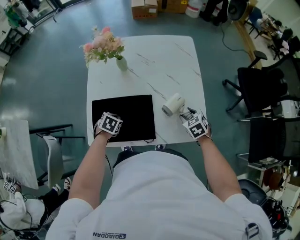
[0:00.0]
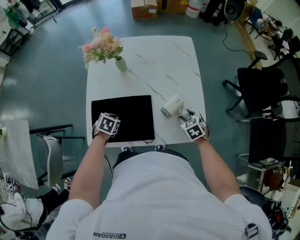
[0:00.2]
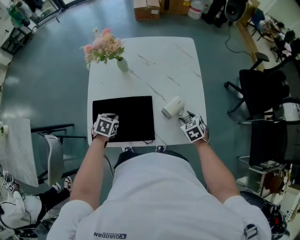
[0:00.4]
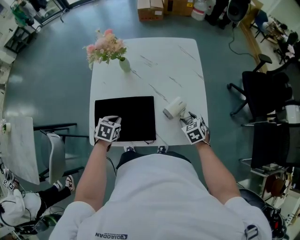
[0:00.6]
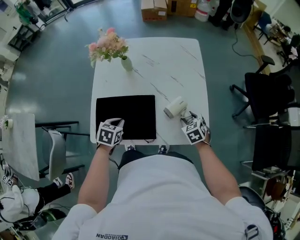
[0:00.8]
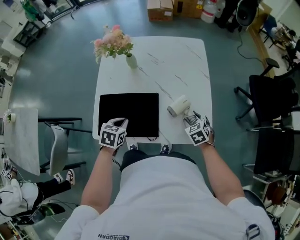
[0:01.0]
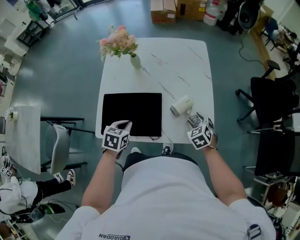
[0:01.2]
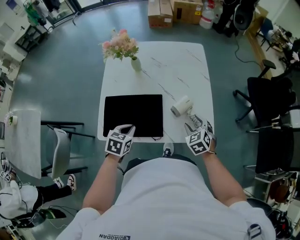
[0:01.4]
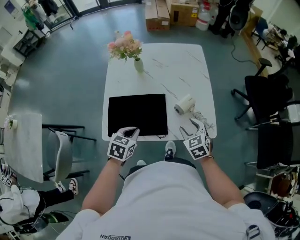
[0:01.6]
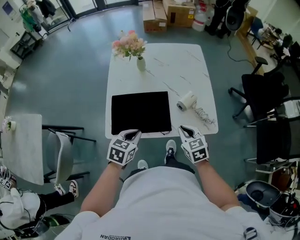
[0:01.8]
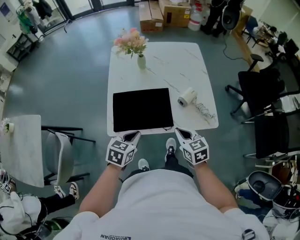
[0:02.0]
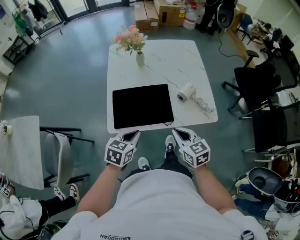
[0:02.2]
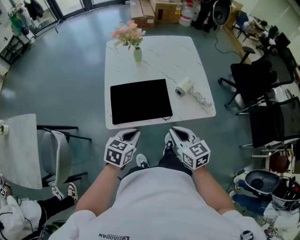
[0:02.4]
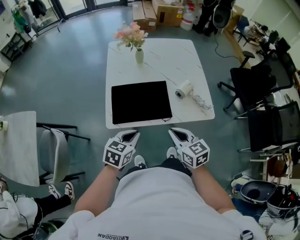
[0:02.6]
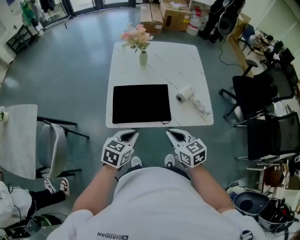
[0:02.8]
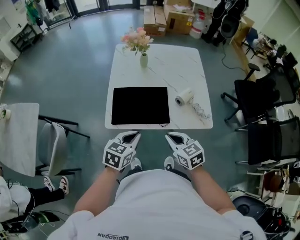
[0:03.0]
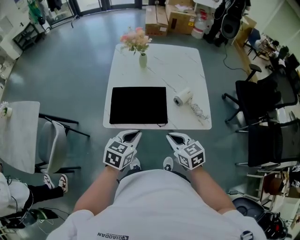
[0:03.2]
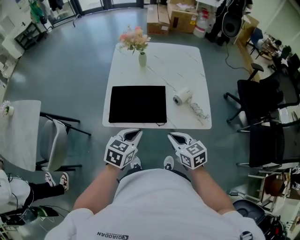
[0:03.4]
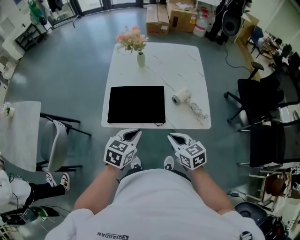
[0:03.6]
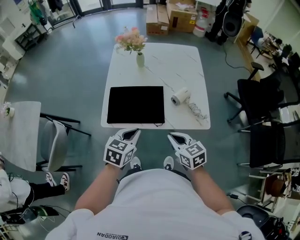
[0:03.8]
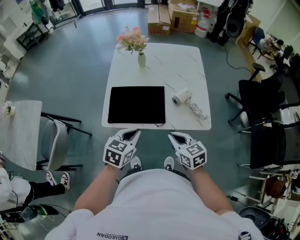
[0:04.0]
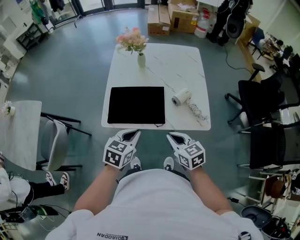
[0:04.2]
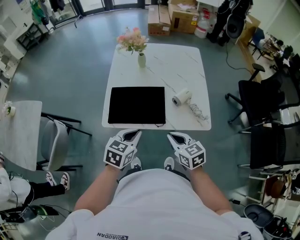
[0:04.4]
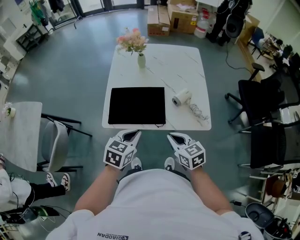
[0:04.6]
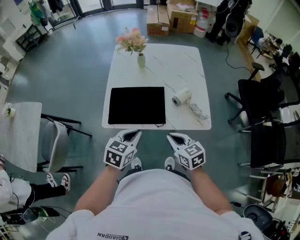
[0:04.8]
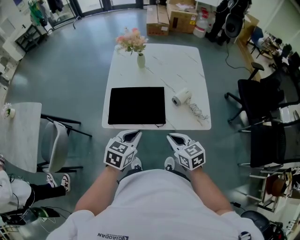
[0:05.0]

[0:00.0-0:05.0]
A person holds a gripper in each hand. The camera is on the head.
0:00.0 to 0:01.6: The right gripper is displaced backward, upward and to the left by about 15 cm, while the left gripper goes roughly 15 cm upward, backward and to the right, and rotates approximately 20 degrees.
0:01.6 to 0:03.4: The left gripper heads backward and upward, covering approximately 10 cm. The right gripper travels backward, to the left and upward by some 15 cm, swivels some 30 degrees, and closes its fingers.
0:03.4 to 0:05.0: There are only small adjustments of the grippers.

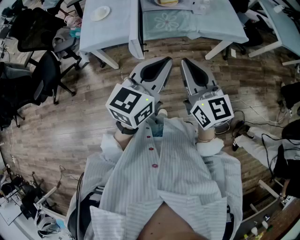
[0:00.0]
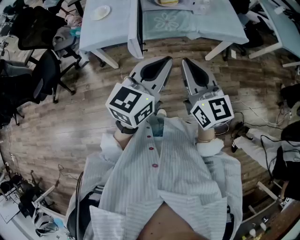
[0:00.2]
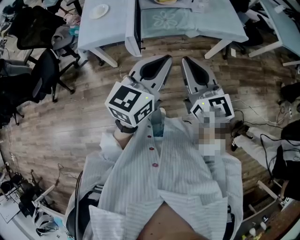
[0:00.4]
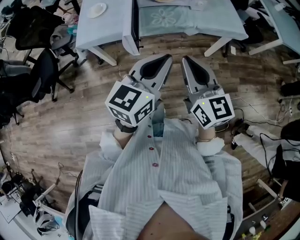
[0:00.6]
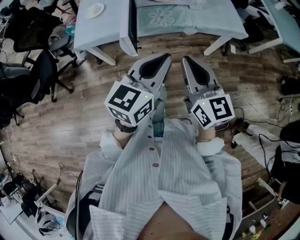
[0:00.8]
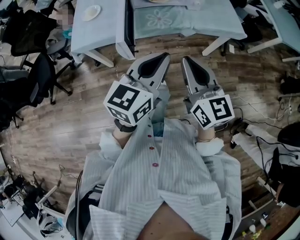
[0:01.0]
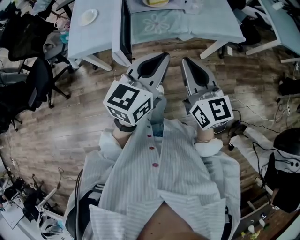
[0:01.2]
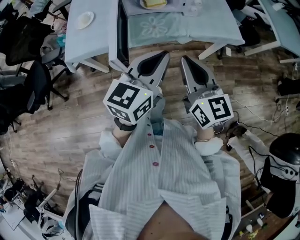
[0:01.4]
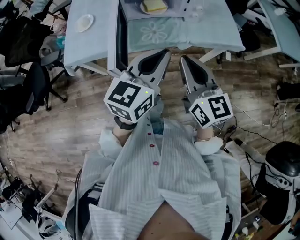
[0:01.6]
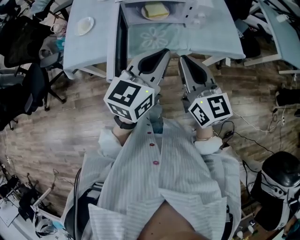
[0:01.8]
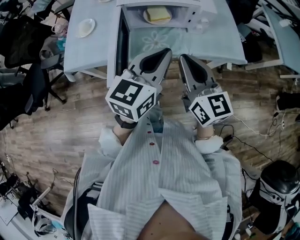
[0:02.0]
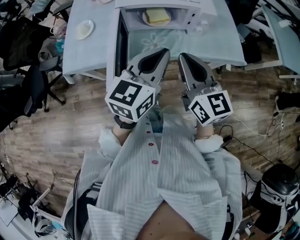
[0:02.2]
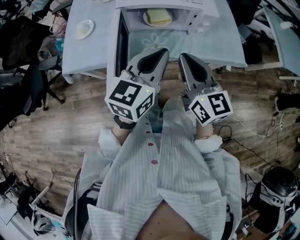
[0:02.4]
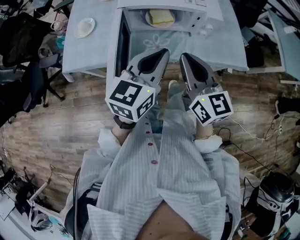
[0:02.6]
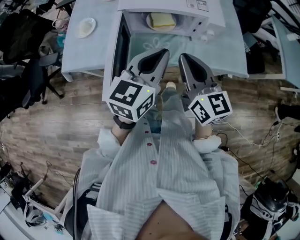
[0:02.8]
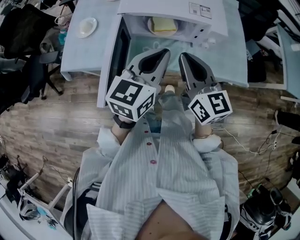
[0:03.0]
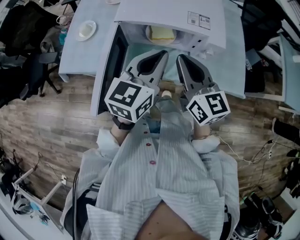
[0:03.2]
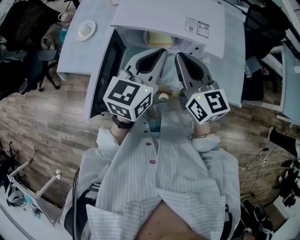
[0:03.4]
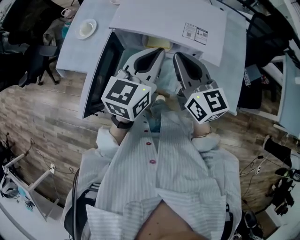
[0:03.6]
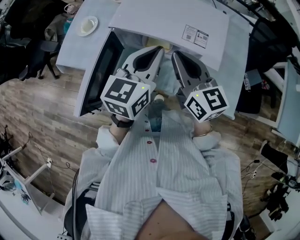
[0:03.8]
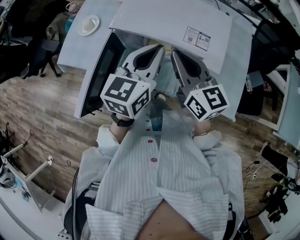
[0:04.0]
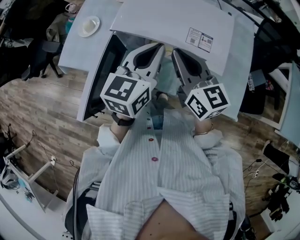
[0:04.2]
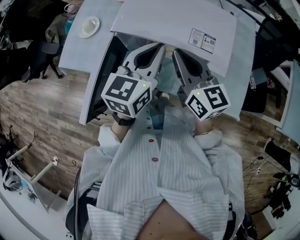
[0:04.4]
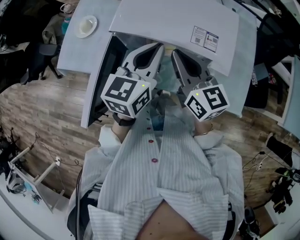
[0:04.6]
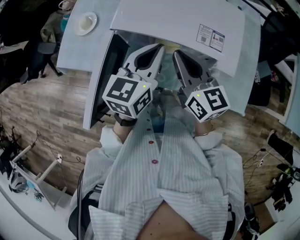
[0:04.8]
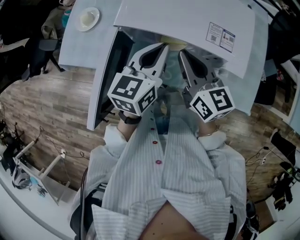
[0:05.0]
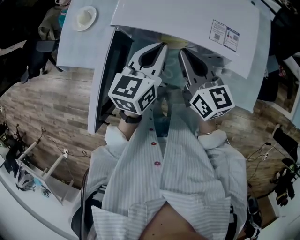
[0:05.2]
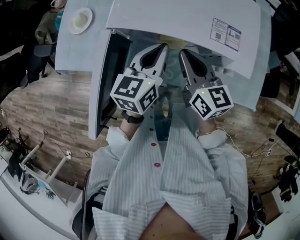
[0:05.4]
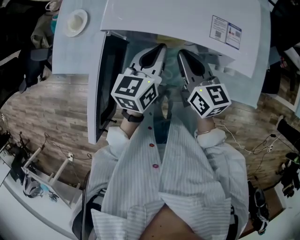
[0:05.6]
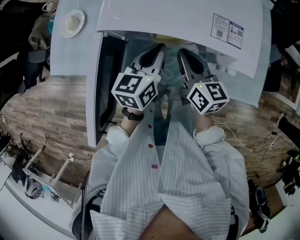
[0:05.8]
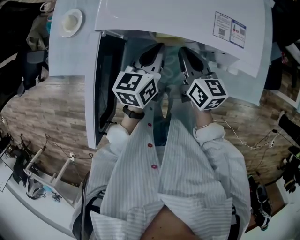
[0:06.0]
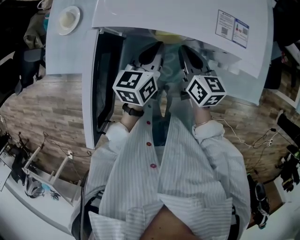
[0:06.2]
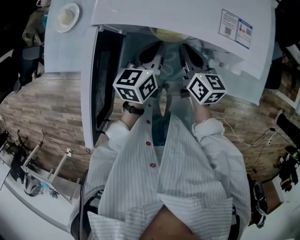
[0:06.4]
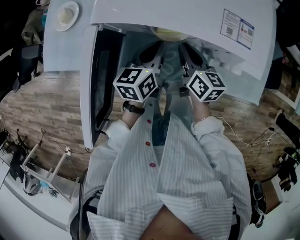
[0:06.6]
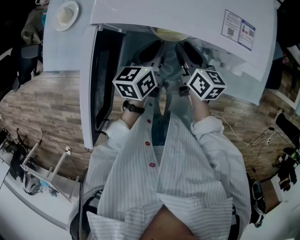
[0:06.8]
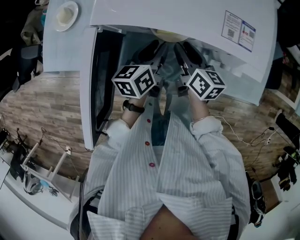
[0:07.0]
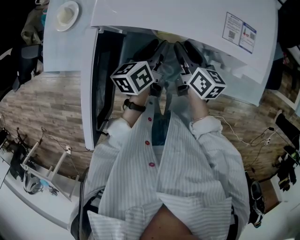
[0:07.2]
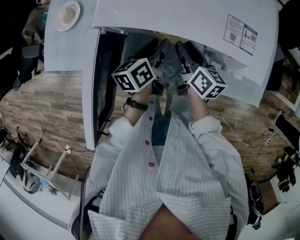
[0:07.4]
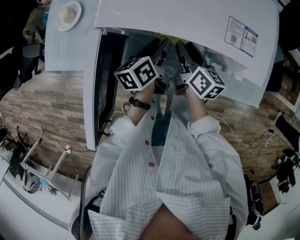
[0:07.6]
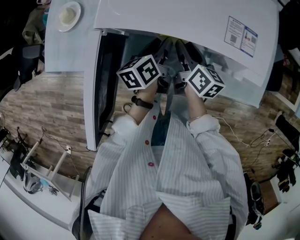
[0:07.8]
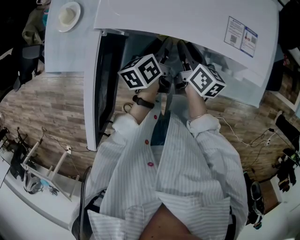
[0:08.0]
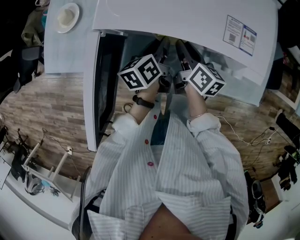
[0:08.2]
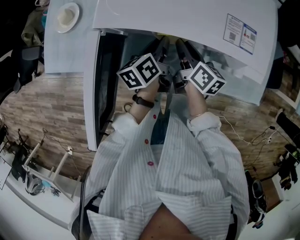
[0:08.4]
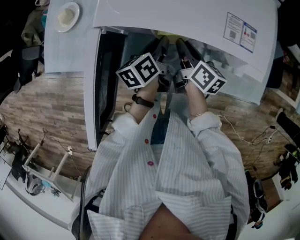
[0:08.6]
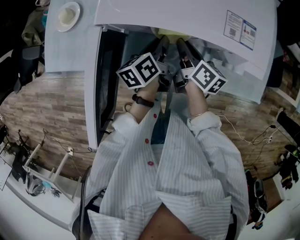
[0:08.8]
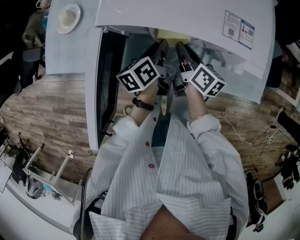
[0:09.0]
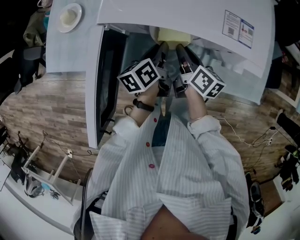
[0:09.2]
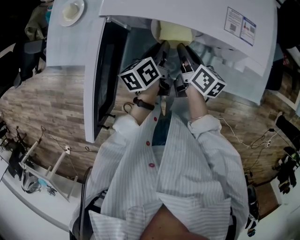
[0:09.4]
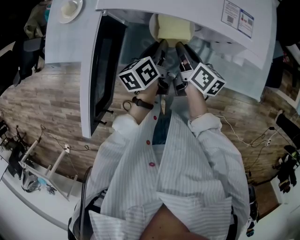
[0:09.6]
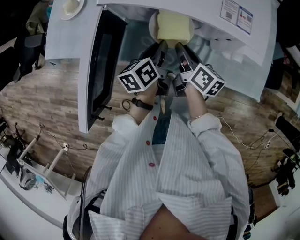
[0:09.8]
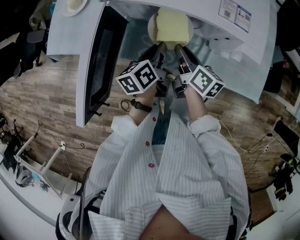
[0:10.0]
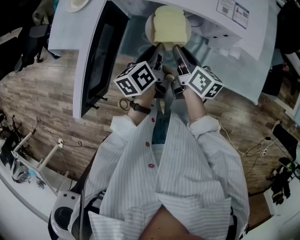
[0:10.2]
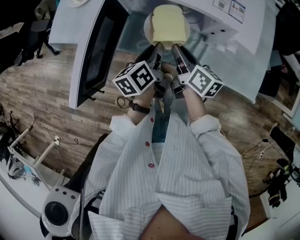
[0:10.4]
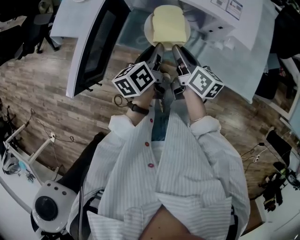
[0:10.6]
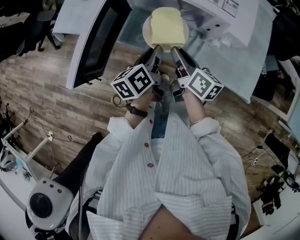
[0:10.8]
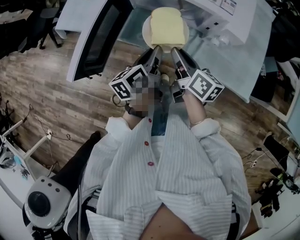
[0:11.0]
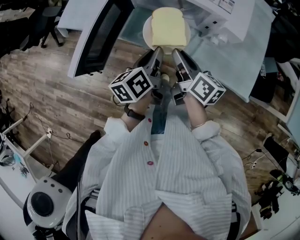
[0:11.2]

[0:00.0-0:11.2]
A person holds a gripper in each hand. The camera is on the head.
0:00.0 to 0:01.6: The grippers both shift forward by some 15 cm.
0:01.6 to 0:03.2: Both grippers move forward, about 20 cm.
0:03.2 to 0:04.8: The grippers both shift forward by approximately 10 cm.
0:04.8 to 0:06.4: The two grippers go some 20 cm downward. The right gripper changes its angle by about 20 degrees.
0:06.4 to 0:08.0: The right gripper opens; the left gripper ends up roughly 5 cm from where it was, swivels approximately 20 degrees, and opens.
0:08.0 to 0:09.6: The two grippers go some 5 cm backward. The left gripper closes up.
0:09.6 to 0:11.2: Both grippers move backward and upward, about 15 cm.

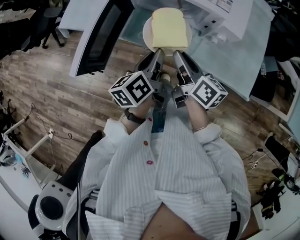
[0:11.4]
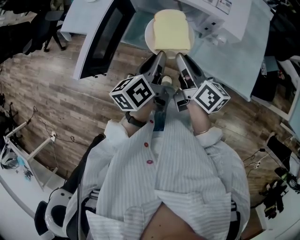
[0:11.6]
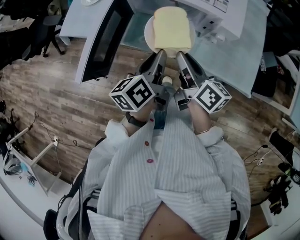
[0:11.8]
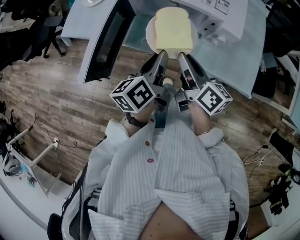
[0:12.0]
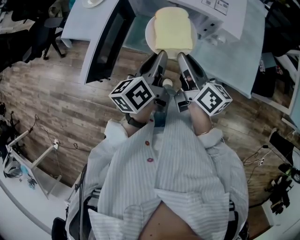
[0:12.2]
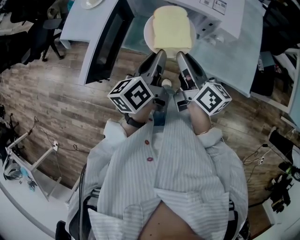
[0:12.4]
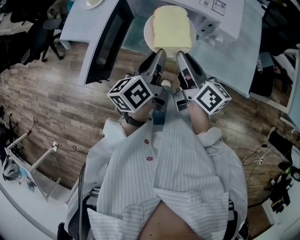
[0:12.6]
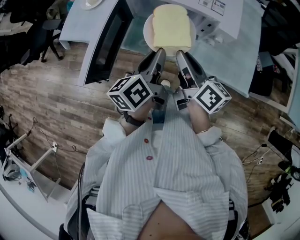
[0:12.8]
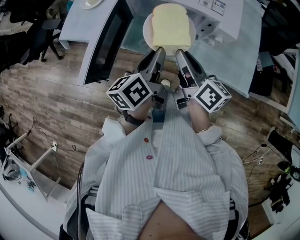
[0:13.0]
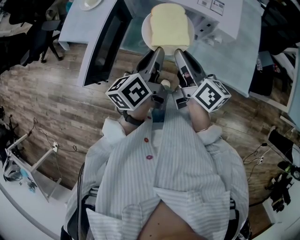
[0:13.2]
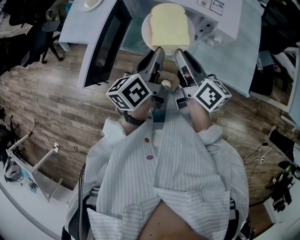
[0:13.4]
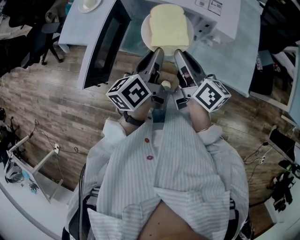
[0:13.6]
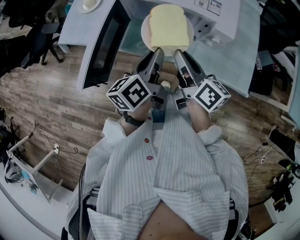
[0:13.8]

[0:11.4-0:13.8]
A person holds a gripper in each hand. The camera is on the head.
0:11.4 to 0:12.6: The grippers both shift upward by about 5 cm.
0:12.6 to 0:13.8: Neither gripper changes place.

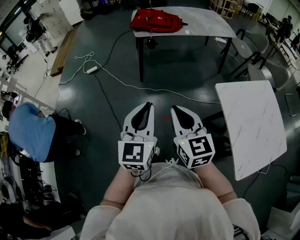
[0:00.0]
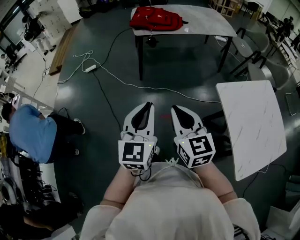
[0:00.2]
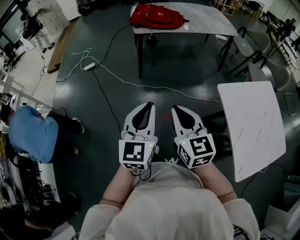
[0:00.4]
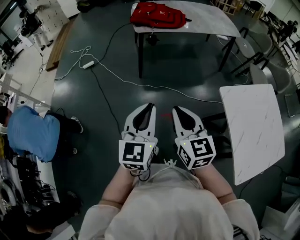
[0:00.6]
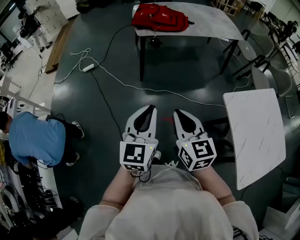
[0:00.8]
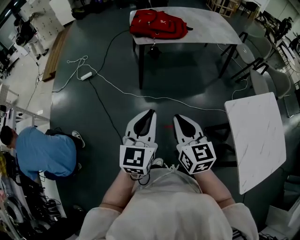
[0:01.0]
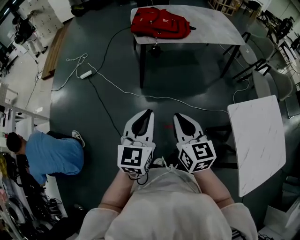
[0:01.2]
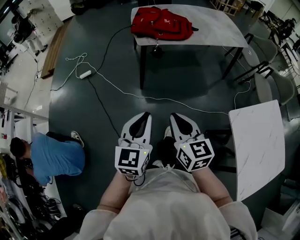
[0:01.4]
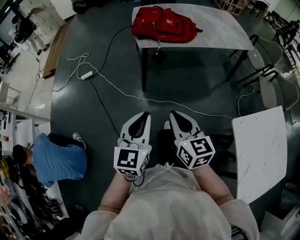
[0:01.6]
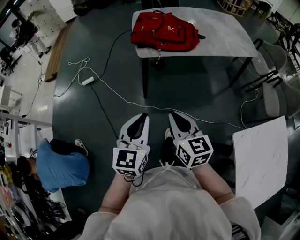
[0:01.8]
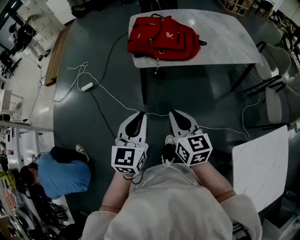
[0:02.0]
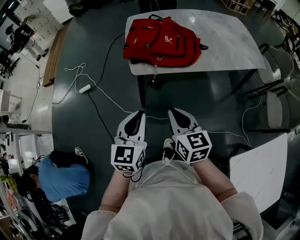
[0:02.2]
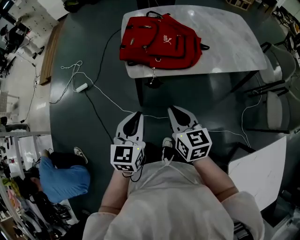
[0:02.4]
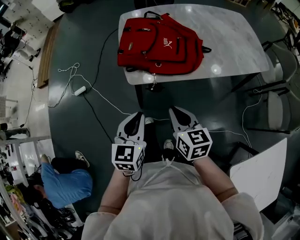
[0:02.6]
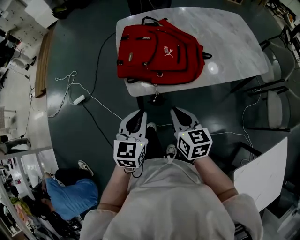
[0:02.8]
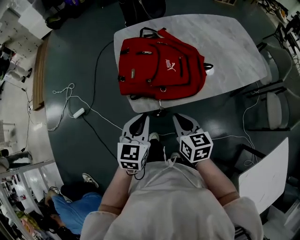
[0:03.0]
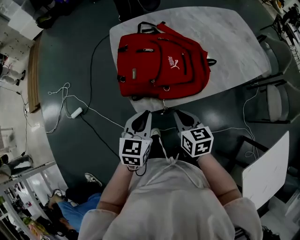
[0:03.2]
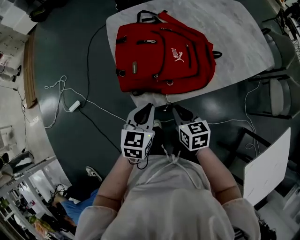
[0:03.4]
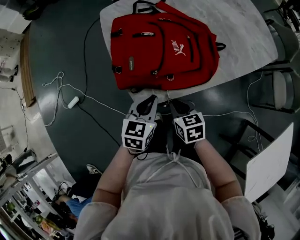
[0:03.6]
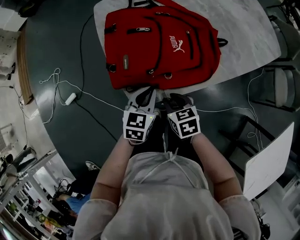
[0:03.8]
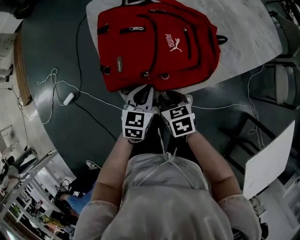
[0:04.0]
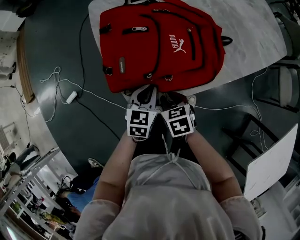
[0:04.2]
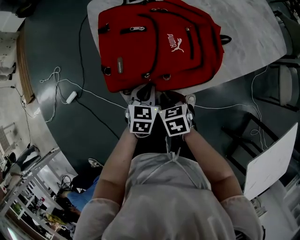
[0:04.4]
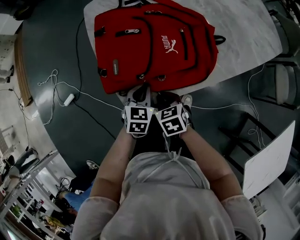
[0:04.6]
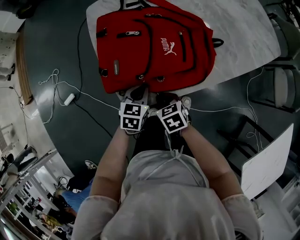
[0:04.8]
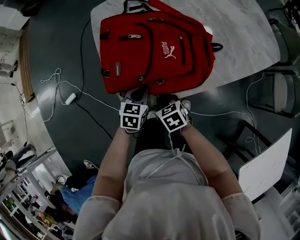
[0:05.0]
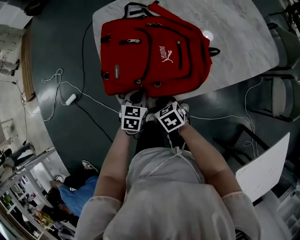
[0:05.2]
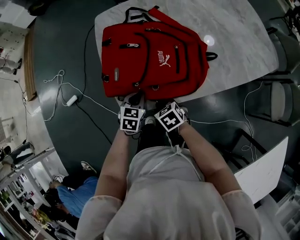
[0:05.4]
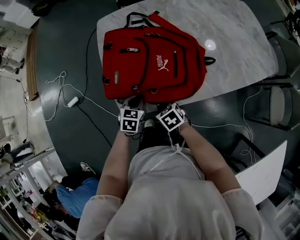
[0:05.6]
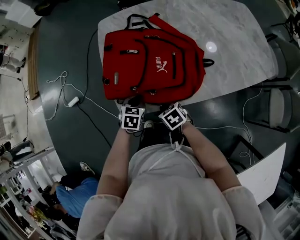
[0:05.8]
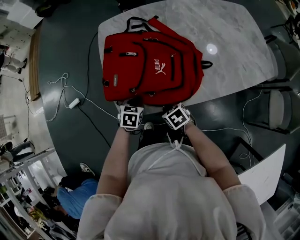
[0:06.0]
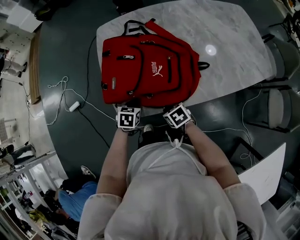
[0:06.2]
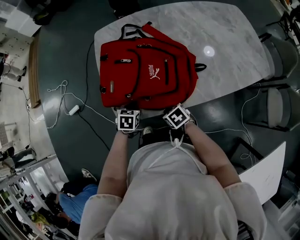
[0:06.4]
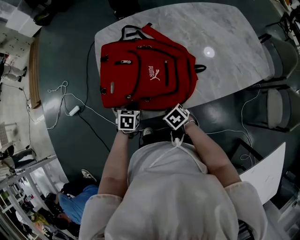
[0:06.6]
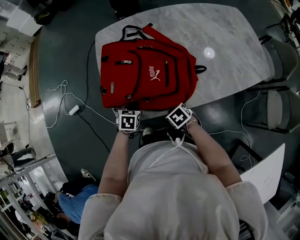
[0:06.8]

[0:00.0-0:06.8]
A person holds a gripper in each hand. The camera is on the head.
0:00.0 to 0:01.4: Both grippers move forward, some 25 cm.
0:01.4 to 0:02.8: The pair of grippers is taken forward, about 50 cm.
0:02.8 to 0:04.0: The right gripper travels downward and forward by approximately 20 cm, and turns by some 30 degrees. The left gripper travels forward and downward by approximately 25 cm, and swivels some 20 degrees.
0:04.0 to 0:05.4: The right gripper swivels roughly 20 degrees.
0:05.4 to 0:06.8: The right gripper travels to the right by approximately 10 cm.
